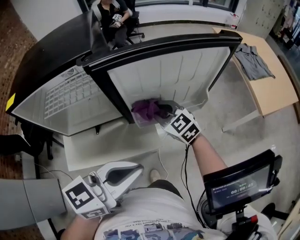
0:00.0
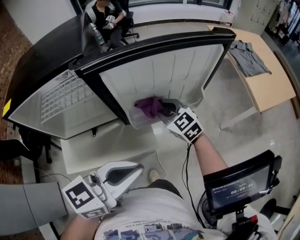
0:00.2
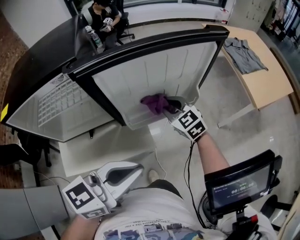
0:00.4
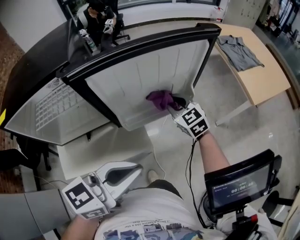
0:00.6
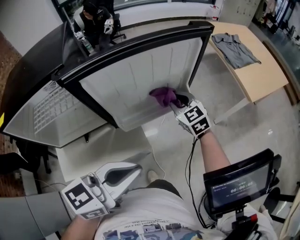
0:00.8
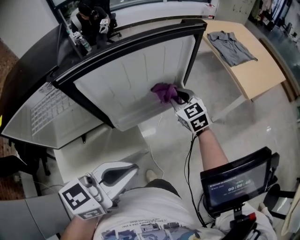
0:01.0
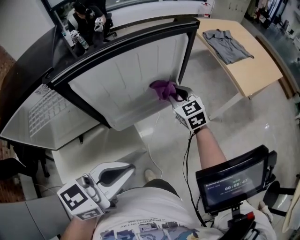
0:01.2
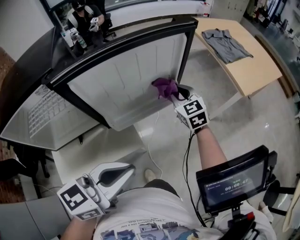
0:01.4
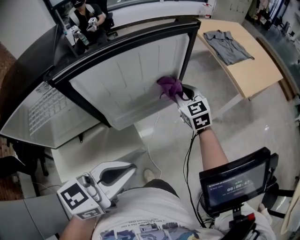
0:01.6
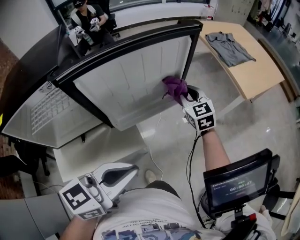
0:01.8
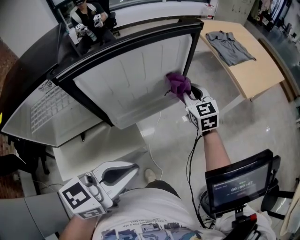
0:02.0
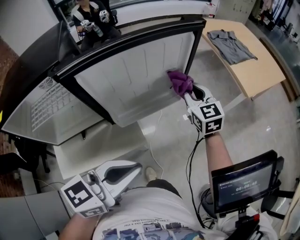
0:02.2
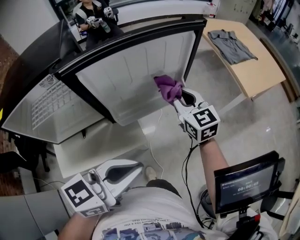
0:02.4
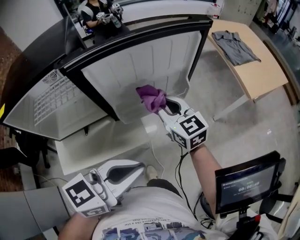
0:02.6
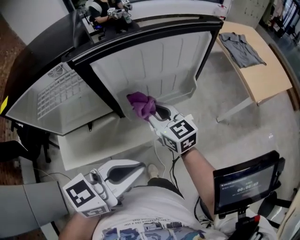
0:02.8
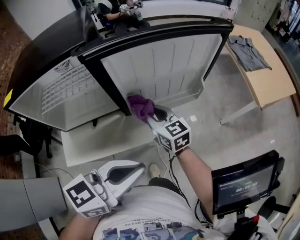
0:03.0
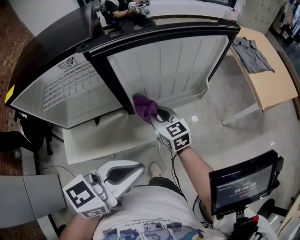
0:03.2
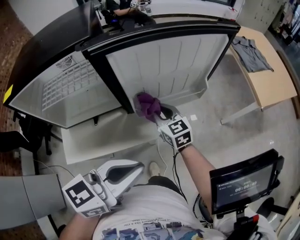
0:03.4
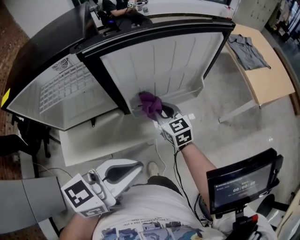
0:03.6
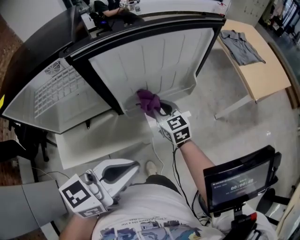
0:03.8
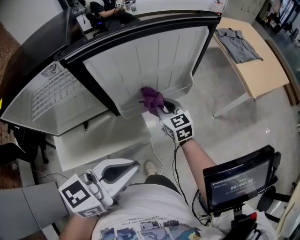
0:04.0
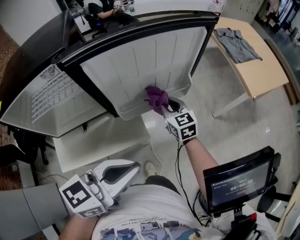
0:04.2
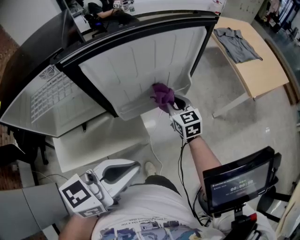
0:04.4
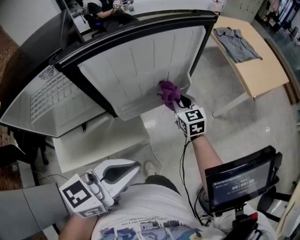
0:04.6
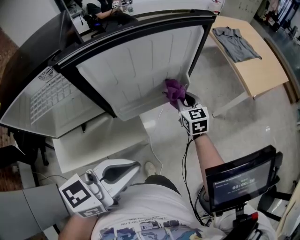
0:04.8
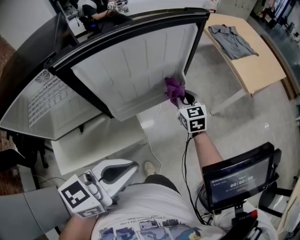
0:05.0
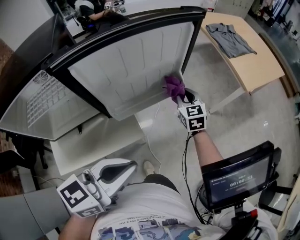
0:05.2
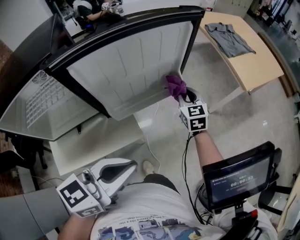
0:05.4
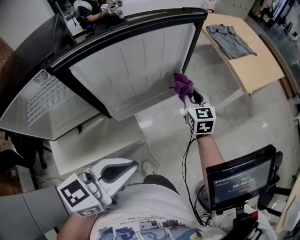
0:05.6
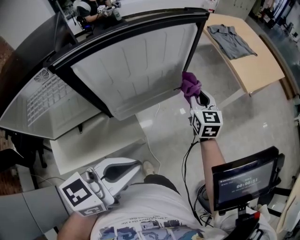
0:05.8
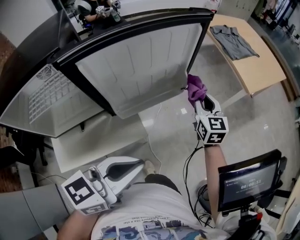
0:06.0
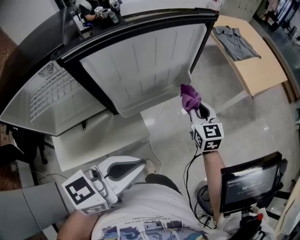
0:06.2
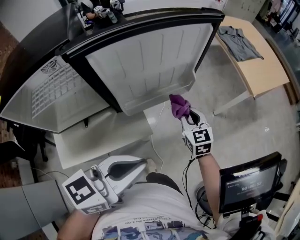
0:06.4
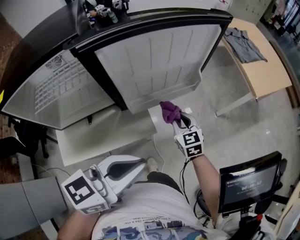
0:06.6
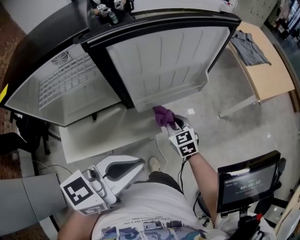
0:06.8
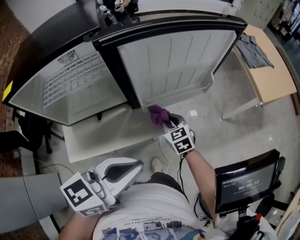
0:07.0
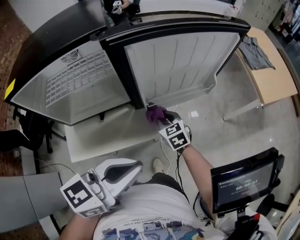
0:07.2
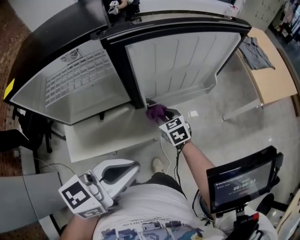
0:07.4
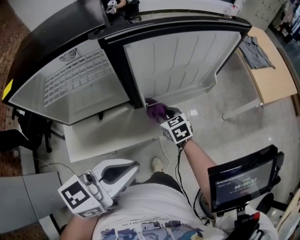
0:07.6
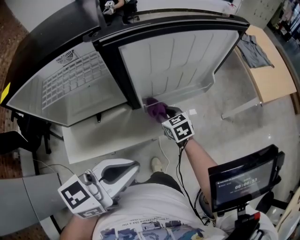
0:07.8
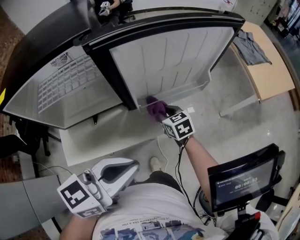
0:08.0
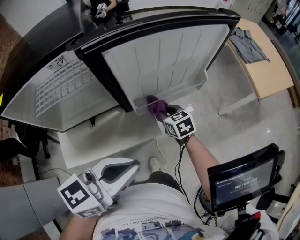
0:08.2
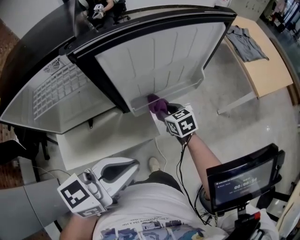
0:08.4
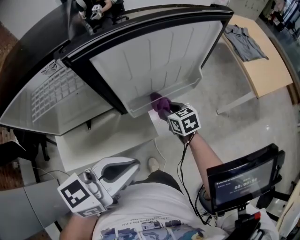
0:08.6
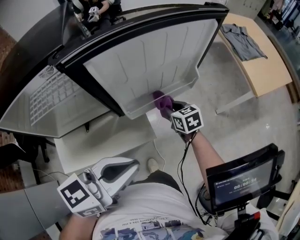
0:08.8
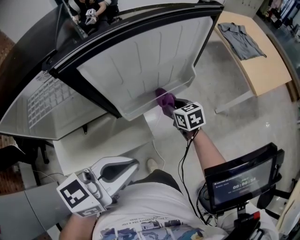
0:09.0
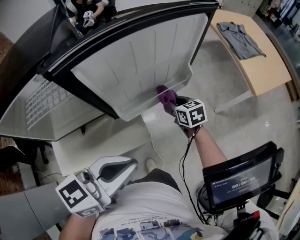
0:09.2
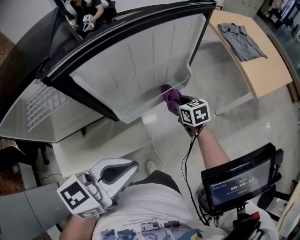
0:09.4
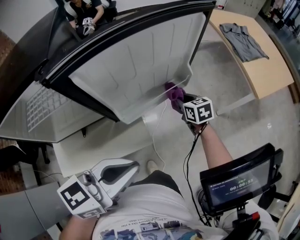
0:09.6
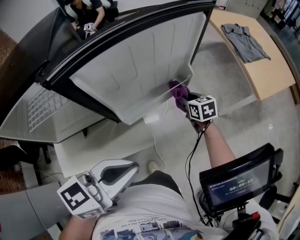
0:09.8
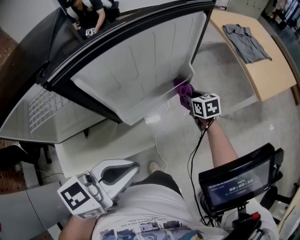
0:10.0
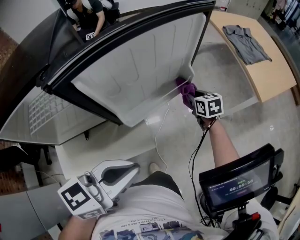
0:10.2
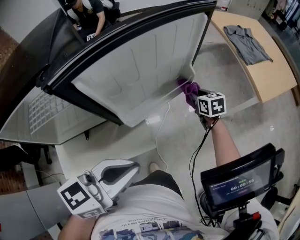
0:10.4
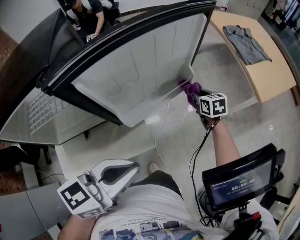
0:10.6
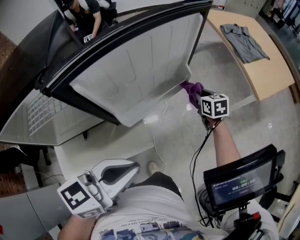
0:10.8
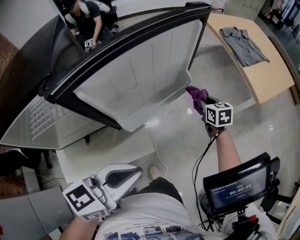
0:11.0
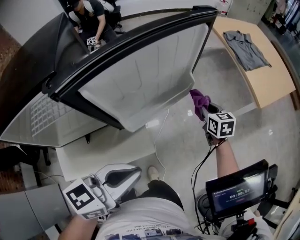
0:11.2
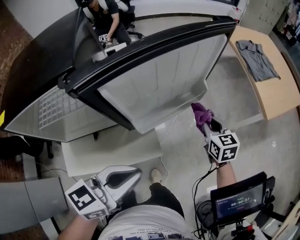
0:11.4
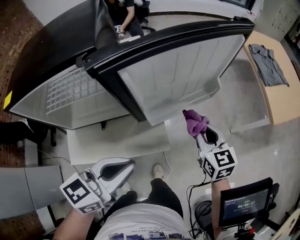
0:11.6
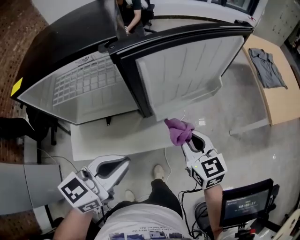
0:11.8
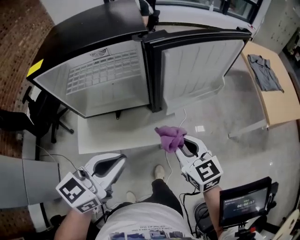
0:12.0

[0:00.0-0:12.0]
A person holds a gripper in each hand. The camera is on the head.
0:00.0 to 0:01.6: The right gripper shifts approximately 20 cm to the right and forward, and turns by about 40 degrees.
0:01.6 to 0:03.0: The right gripper goes approximately 25 cm to the left and backward, and swivels approximately 30 degrees.
0:03.0 to 0:04.4: The right gripper is displaced to the right, forward and downward by roughly 15 cm, and swivels about 20 degrees.
0:04.4 to 0:06.0: The right gripper goes some 15 cm to the right and upward, and rotates approximately 20 degrees.
0:06.0 to 0:07.6: The left gripper is displaced to the left by roughly 10 cm; the right gripper goes some 30 cm to the left and downward, and swivels roughly 40 degrees.
0:07.6 to 0:09.0: The left gripper shifts approximately 10 cm forward and to the right; the right gripper goes approximately 15 cm to the right and forward.
0:09.0 to 0:10.4: The right gripper moves forward and to the right, approximately 15 cm.
0:10.4 to 0:12.0: The left gripper ends up approximately 15 cm from where it was, and rotates some 20 degrees, while the right gripper shifts by about 40 cm, and changes its angle by about 30 degrees.

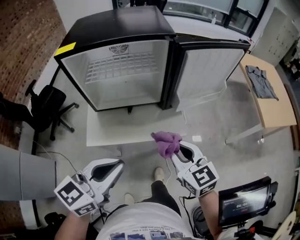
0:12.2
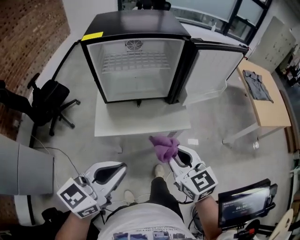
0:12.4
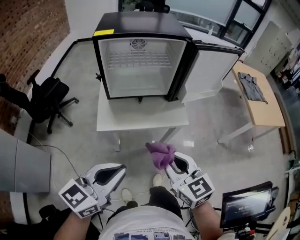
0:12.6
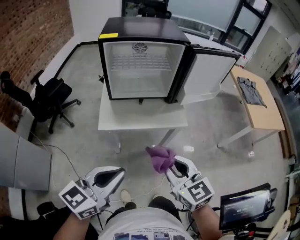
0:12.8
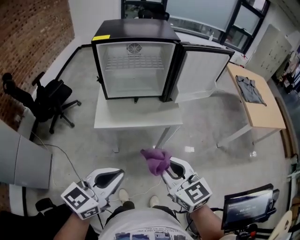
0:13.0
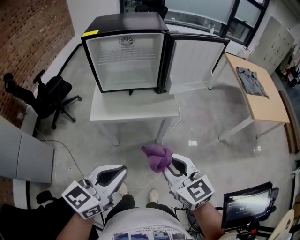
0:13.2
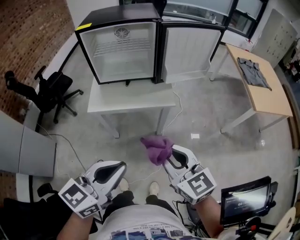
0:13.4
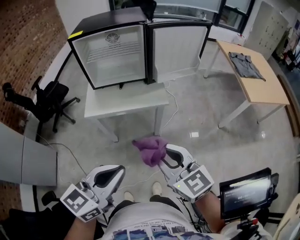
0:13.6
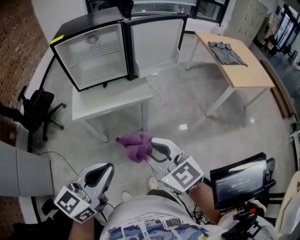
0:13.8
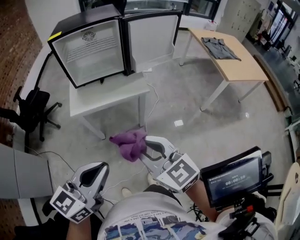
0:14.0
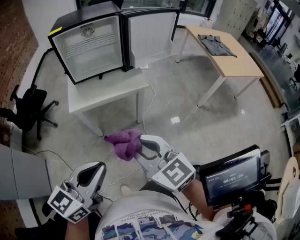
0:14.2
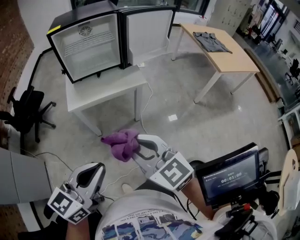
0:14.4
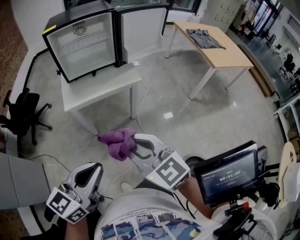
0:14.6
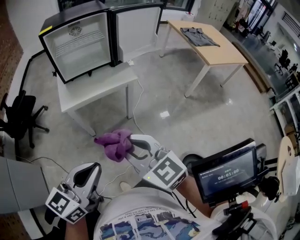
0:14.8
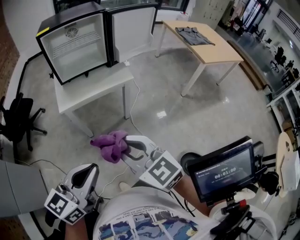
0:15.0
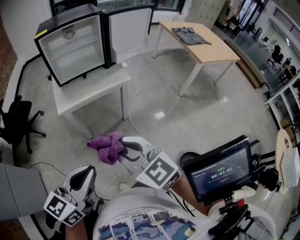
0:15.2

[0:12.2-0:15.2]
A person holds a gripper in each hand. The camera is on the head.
0:12.2 to 0:13.8: Both grippers move backward, about 25 cm.
0:13.8 to 0:15.2: The grippers both shift to the left and backward by roughly 15 cm.

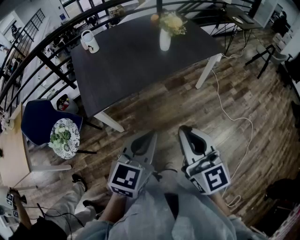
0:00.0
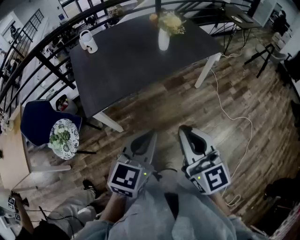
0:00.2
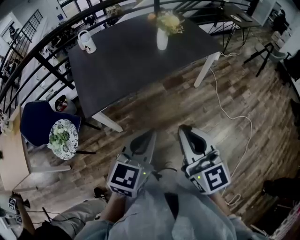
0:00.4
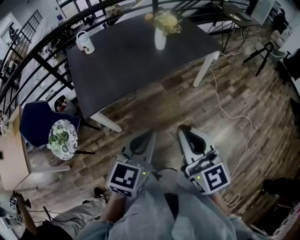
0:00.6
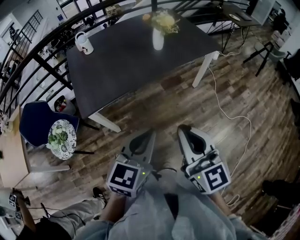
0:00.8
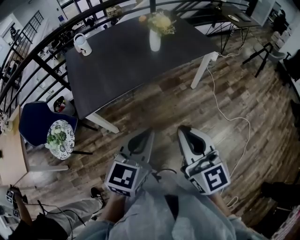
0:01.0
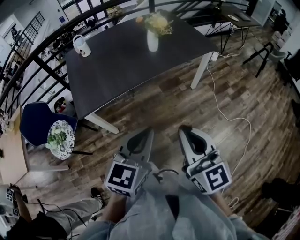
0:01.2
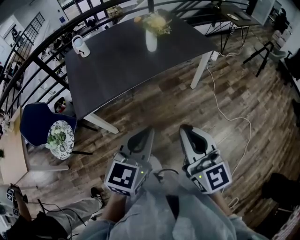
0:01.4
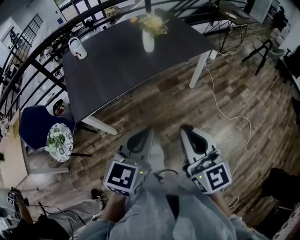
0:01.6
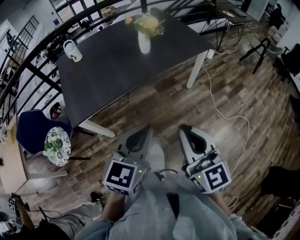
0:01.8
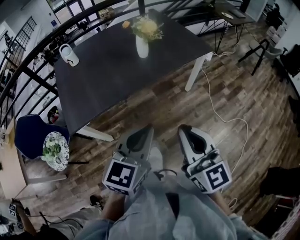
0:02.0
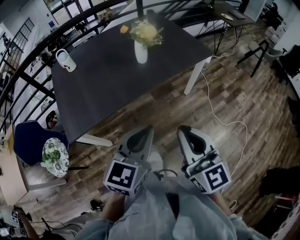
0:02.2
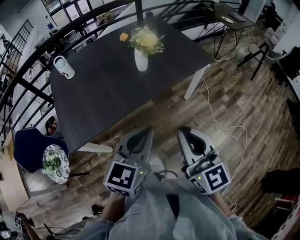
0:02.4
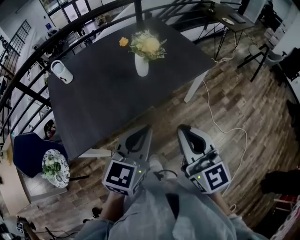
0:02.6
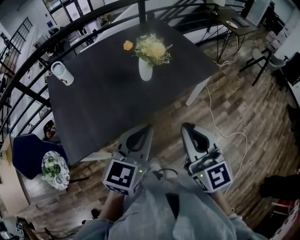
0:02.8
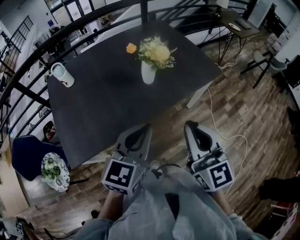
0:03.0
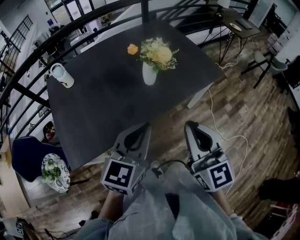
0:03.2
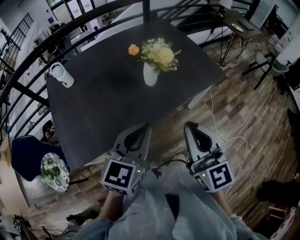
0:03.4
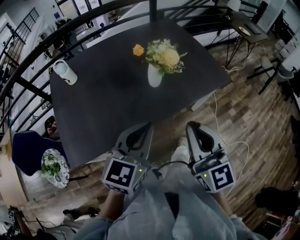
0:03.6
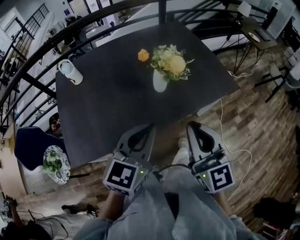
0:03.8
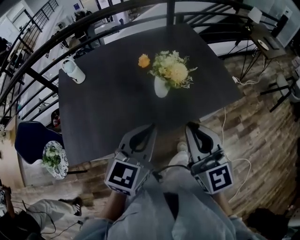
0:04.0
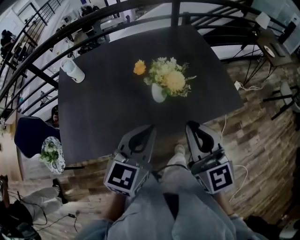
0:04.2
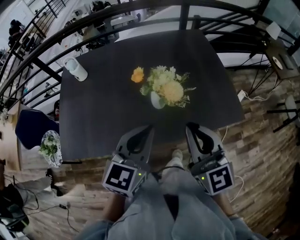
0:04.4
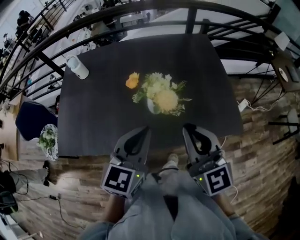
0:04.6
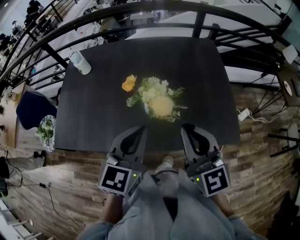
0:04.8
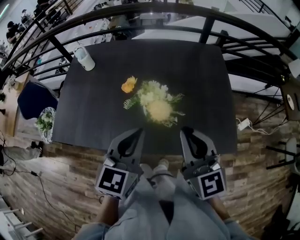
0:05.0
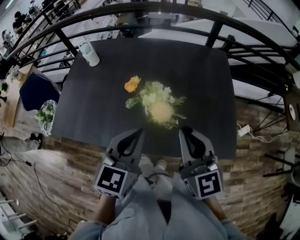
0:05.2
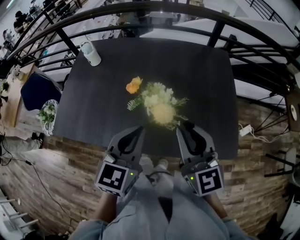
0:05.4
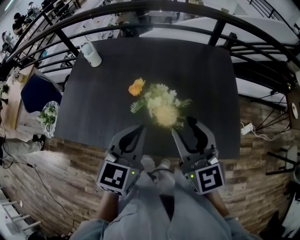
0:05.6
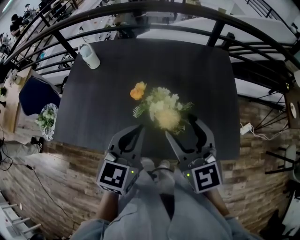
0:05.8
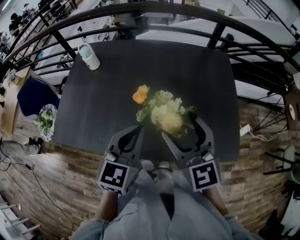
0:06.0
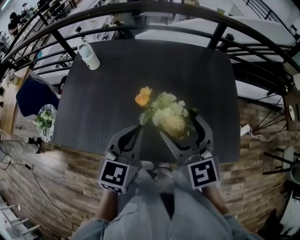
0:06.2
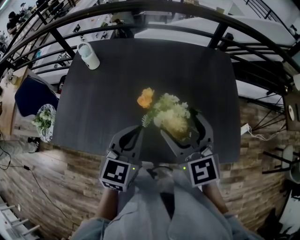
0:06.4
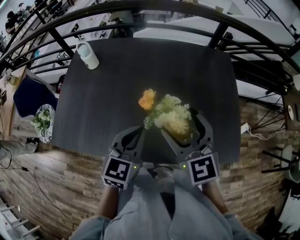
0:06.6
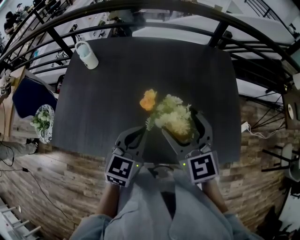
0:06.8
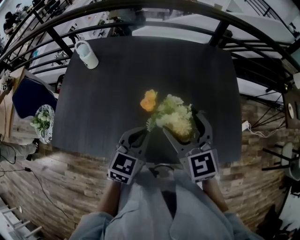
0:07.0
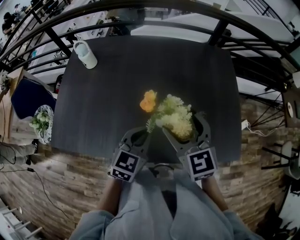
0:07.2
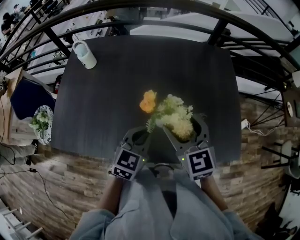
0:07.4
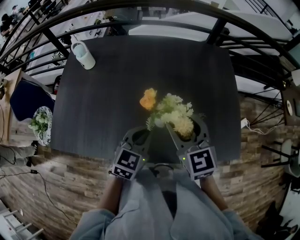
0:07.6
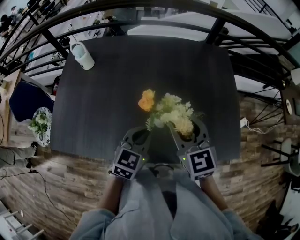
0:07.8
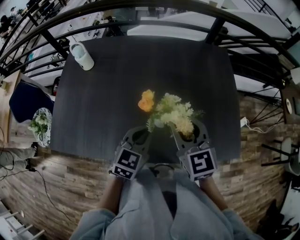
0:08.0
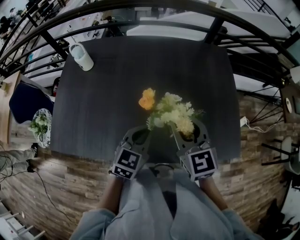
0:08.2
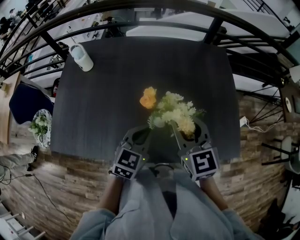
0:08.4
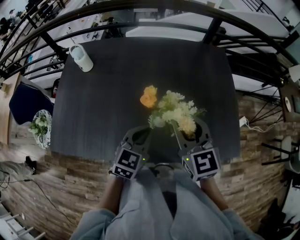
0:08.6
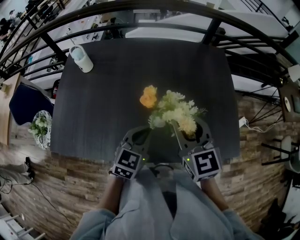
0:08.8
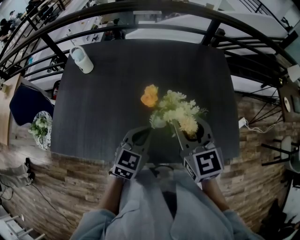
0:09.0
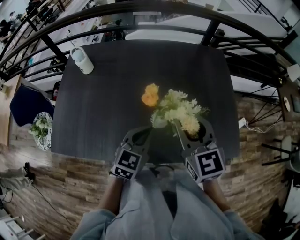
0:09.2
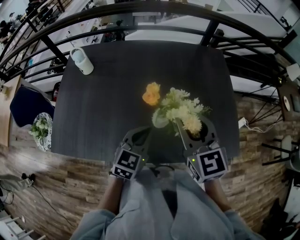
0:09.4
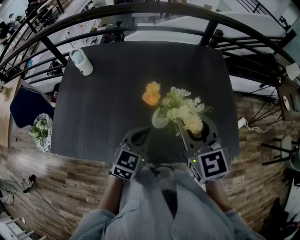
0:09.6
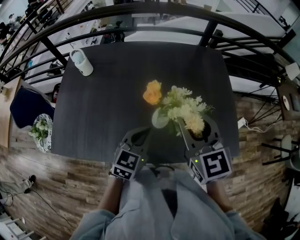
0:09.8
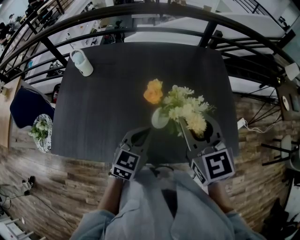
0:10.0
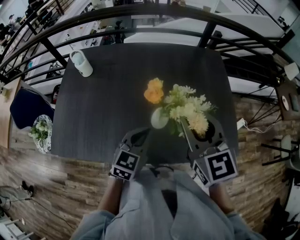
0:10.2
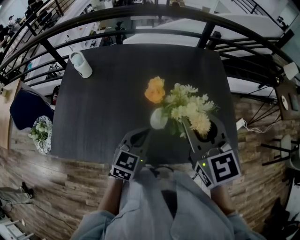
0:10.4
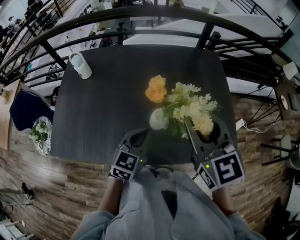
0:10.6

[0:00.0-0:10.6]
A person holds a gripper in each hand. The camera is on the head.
0:00.0 to 0:01.6: Both grippers move to the right, approximately 10 cm.
0:01.6 to 0:03.0: The grippers both shift forward by some 30 cm.
0:03.0 to 0:04.6: The right gripper changes place by roughly 25 cm, and swivels about 30 degrees. Meanwhile the left gripper shifts by roughly 20 cm, and swivels roughly 30 degrees.
0:04.6 to 0:06.0: The grippers both shift forward by some 10 cm. The right gripper opens up.
0:06.0 to 0:07.6: The right gripper shifts some 5 cm downward, while the left gripper moves downward, roughly 10 cm.
0:07.6 to 0:09.0: The grippers move only a little.
0:09.0 to 0:10.6: The right gripper moves upward, roughly 10 cm.
